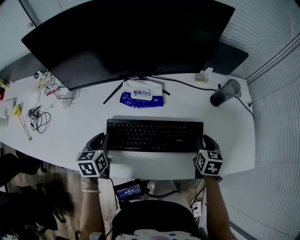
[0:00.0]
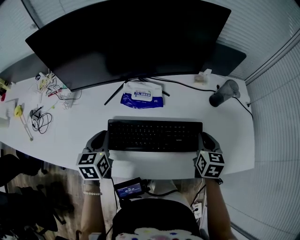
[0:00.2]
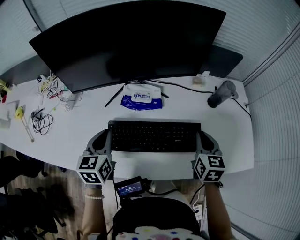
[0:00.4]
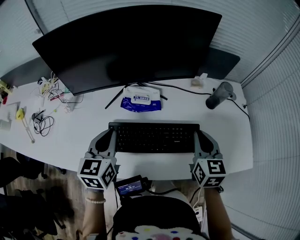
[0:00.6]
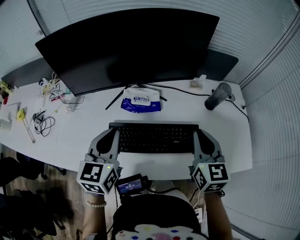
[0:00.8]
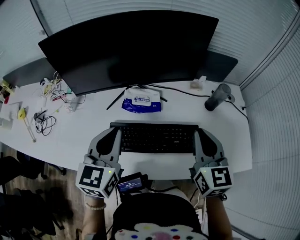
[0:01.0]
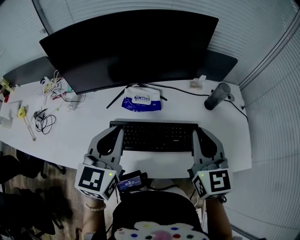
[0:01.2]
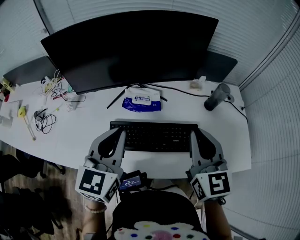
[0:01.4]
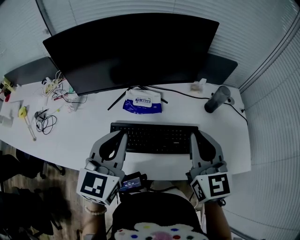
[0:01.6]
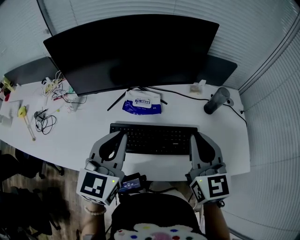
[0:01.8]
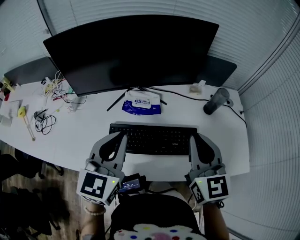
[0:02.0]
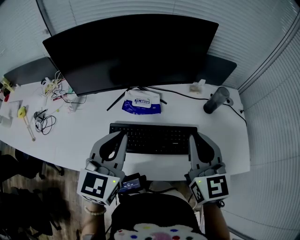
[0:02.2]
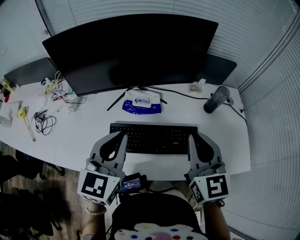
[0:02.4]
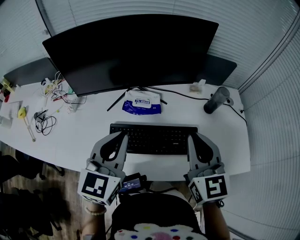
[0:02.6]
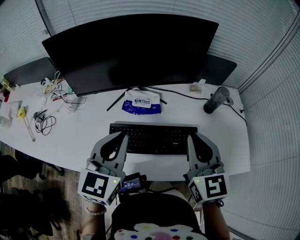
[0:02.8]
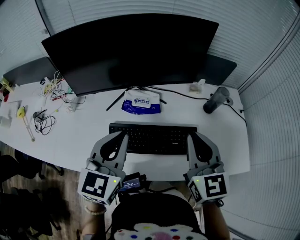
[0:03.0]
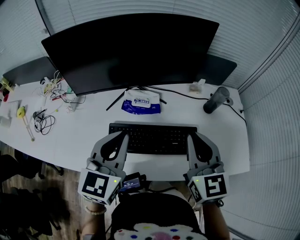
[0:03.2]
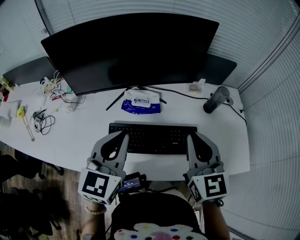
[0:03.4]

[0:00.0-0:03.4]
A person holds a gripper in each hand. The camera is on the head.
0:00.0 to 0:01.6: The right gripper goes some 25 cm upward and to the left, and tips its fingers upward by approximately 30 degrees, while the left gripper heads upward and to the right, covering about 25 cm, and turns by roughly 30 degrees.
0:01.6 to 0:03.4: Neither gripper changes place.

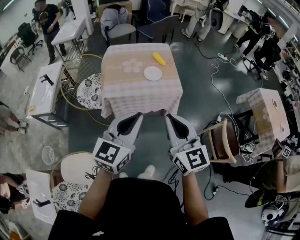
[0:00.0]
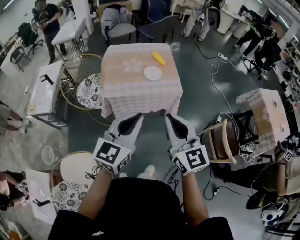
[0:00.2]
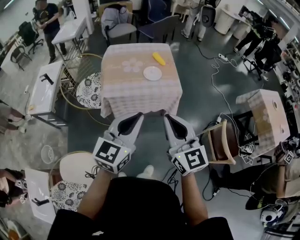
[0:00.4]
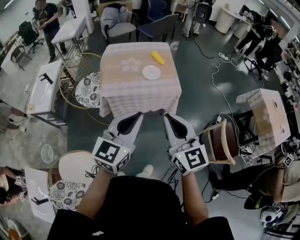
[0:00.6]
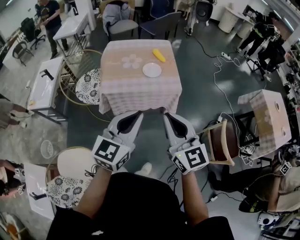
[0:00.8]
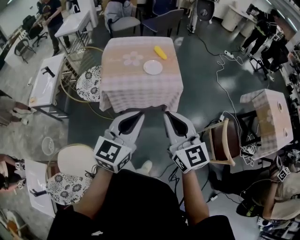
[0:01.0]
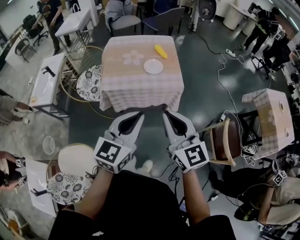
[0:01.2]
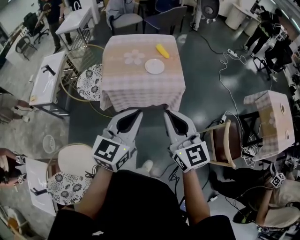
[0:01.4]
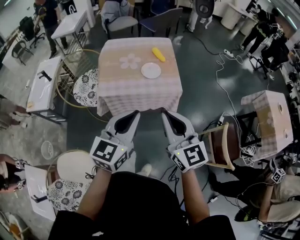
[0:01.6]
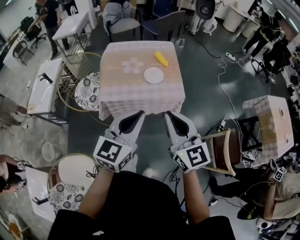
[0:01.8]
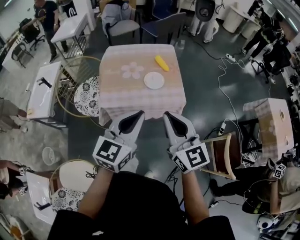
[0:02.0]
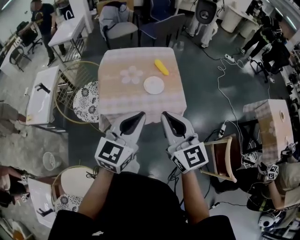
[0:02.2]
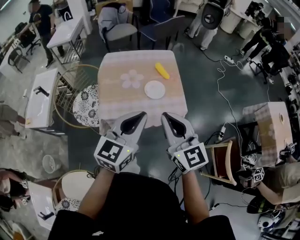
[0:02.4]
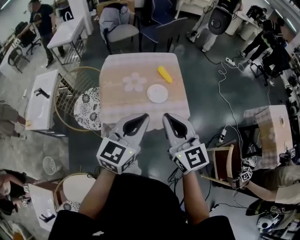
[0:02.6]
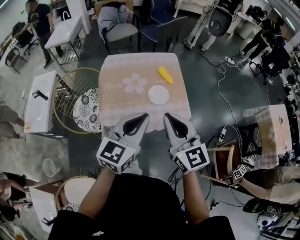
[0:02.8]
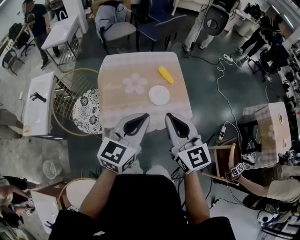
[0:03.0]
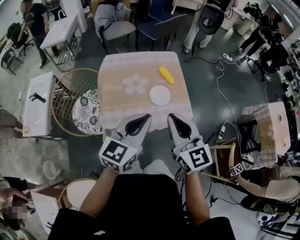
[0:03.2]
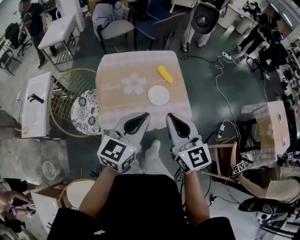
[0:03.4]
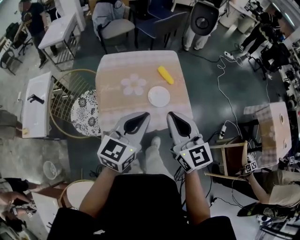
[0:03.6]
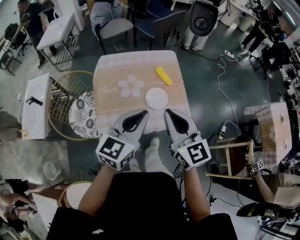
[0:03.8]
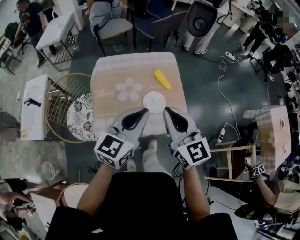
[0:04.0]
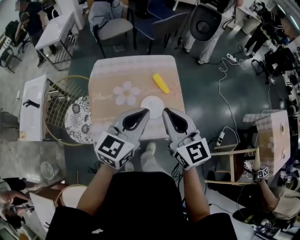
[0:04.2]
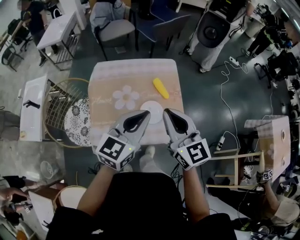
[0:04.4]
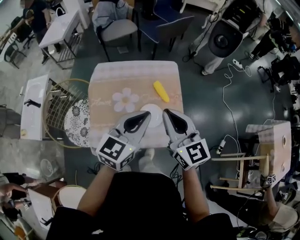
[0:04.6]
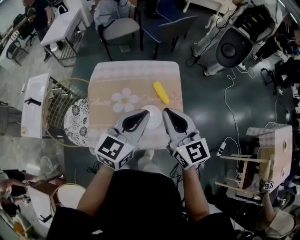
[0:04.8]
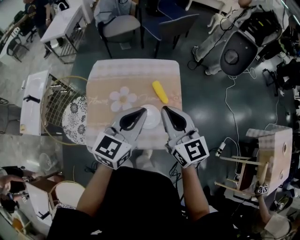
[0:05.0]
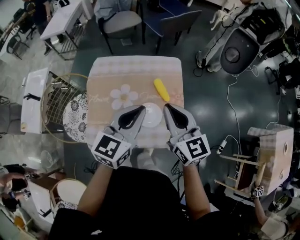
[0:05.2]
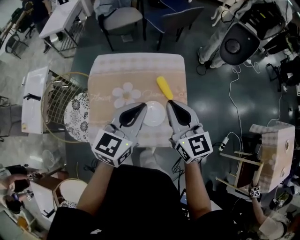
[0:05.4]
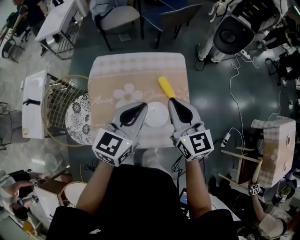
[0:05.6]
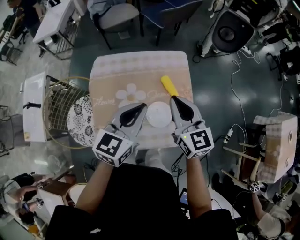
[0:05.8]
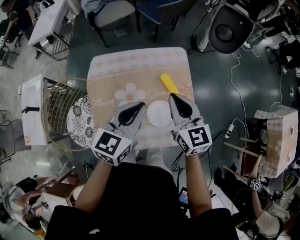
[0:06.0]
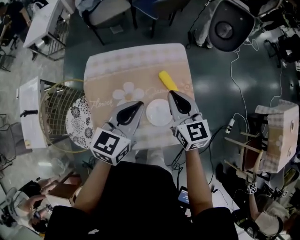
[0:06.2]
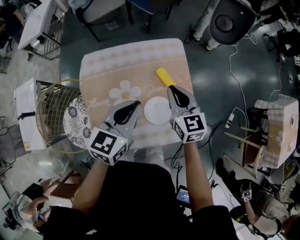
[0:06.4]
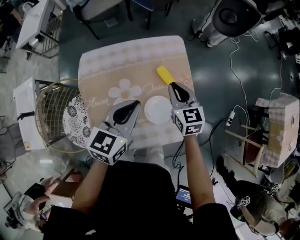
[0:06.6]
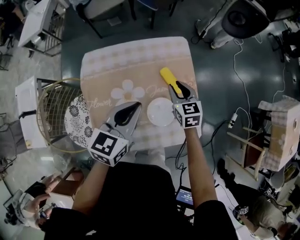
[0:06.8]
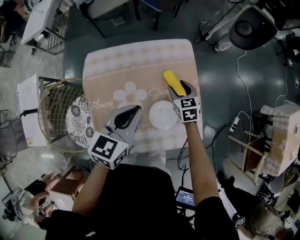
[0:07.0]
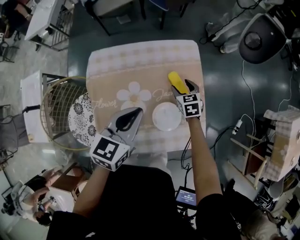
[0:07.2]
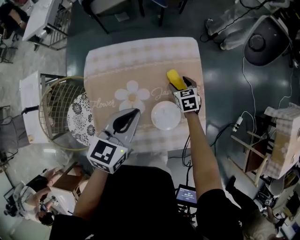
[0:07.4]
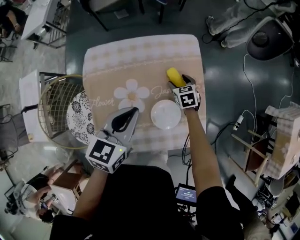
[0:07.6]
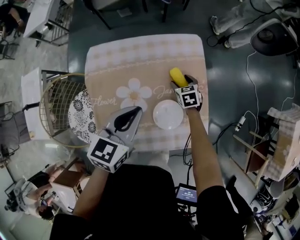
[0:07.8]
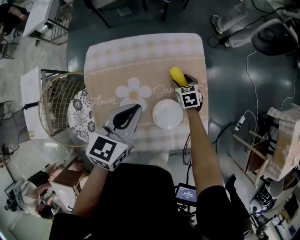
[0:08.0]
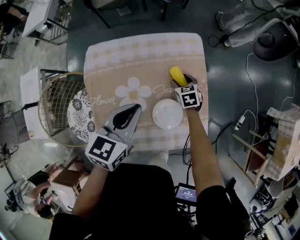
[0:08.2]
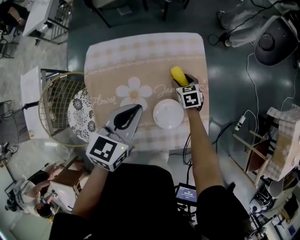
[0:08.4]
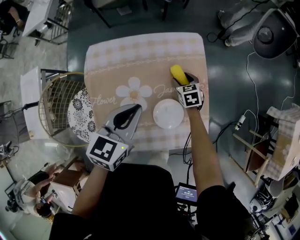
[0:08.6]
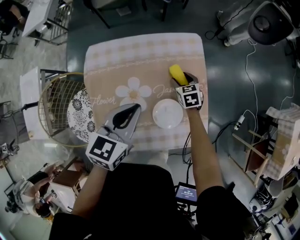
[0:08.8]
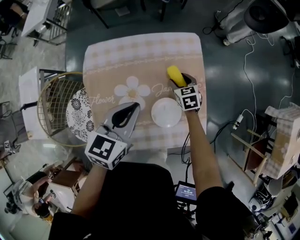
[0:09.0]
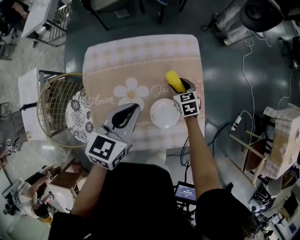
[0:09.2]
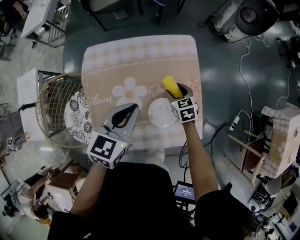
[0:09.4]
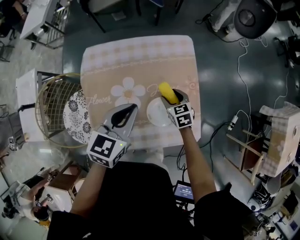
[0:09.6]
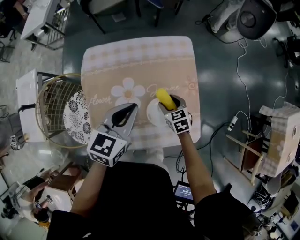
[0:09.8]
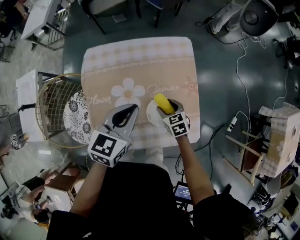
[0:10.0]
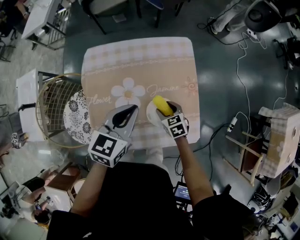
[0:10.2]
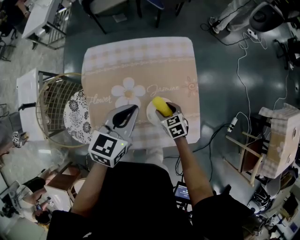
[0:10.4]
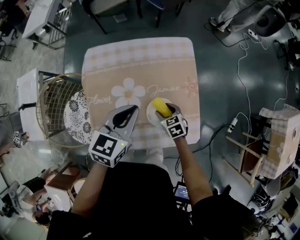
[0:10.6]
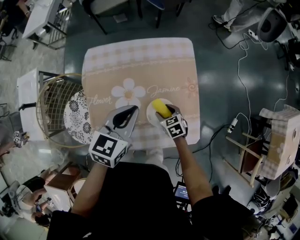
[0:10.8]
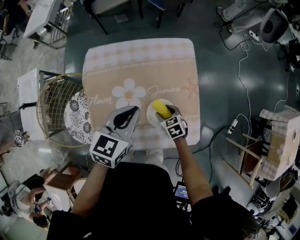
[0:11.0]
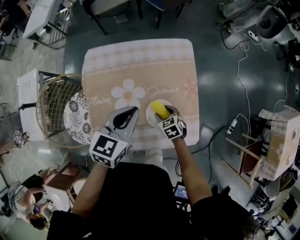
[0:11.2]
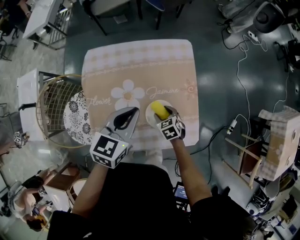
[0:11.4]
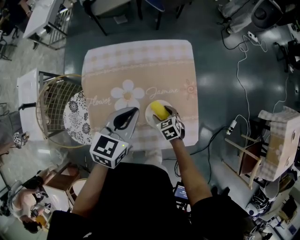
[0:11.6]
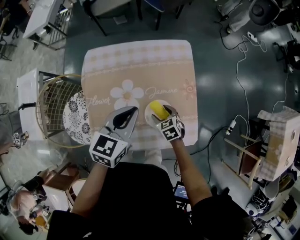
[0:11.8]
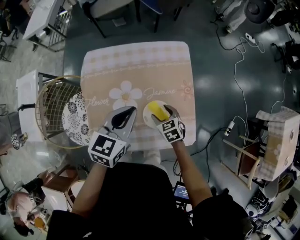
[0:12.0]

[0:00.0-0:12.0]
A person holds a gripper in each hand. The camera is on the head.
0:00.0 to 0:01.6: The two grippers go about 5 cm forward.
0:01.6 to 0:03.0: The right gripper heads forward and to the left, covering some 20 cm. The left gripper is displaced forward by approximately 20 cm.
0:03.0 to 0:04.4: Both grippers travel together forward, about 15 cm.
0:04.4 to 0:06.0: Both grippers travel together forward and downward, about 15 cm.
0:06.0 to 0:07.6: The left gripper goes some 10 cm downward; the right gripper shifts some 35 cm downward, points its fingers roughly 40 degrees further downward, and opens its fingers.
0:07.6 to 0:09.0: The grippers move only a little.
0:09.0 to 0:10.4: The right gripper moves backward, some 15 cm.
0:10.4 to 0:12.0: The grippers stay close to where they were, moving slightly.

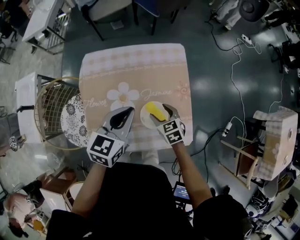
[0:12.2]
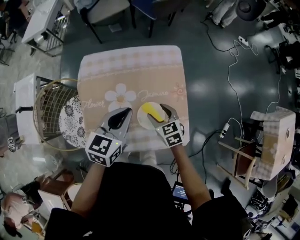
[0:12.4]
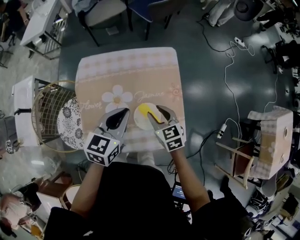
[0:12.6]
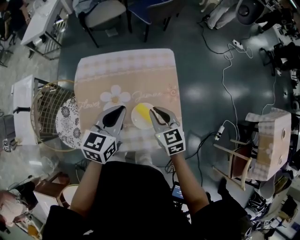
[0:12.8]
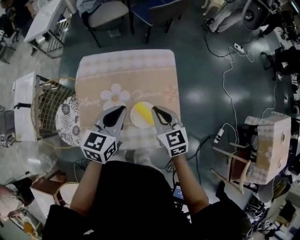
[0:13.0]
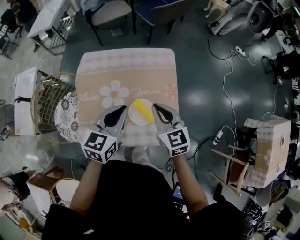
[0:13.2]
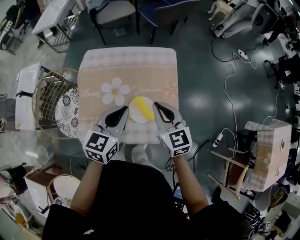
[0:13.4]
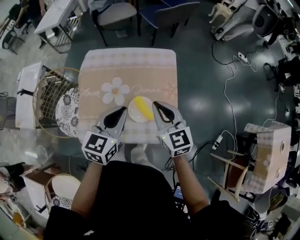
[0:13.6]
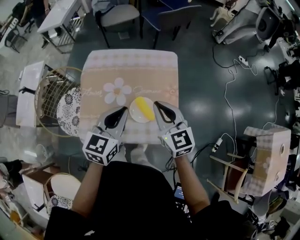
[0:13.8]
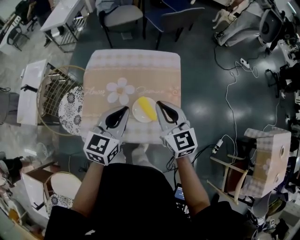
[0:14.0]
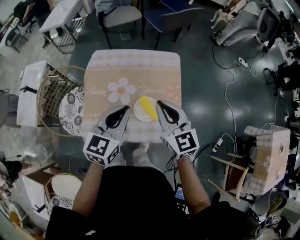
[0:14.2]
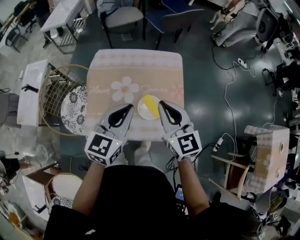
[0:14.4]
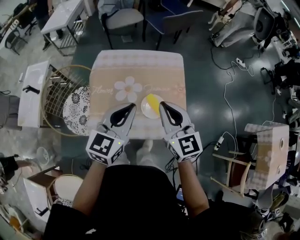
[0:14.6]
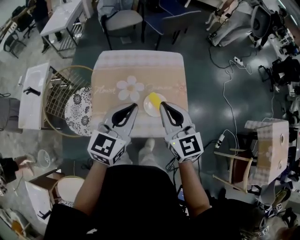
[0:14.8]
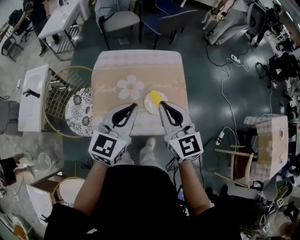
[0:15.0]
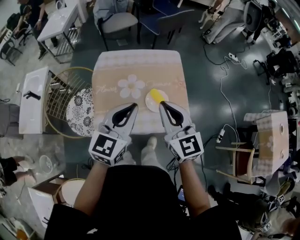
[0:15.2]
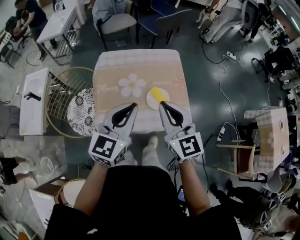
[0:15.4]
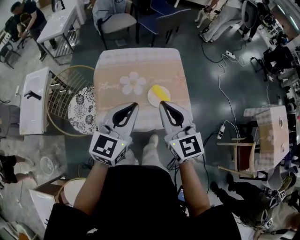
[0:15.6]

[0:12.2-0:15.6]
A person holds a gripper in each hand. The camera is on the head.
0:12.2 to 0:13.8: The left gripper is displaced backward by about 10 cm; the right gripper heads upward, covering about 25 cm, angles its fingers upward, by roughly 30 degrees, and closes its fingers.
0:13.8 to 0:15.6: The grippers both shift backward, to the left and upward by roughly 20 cm.

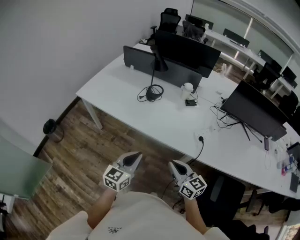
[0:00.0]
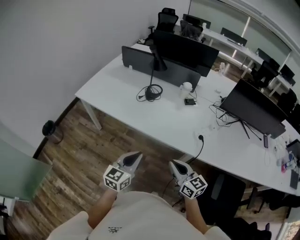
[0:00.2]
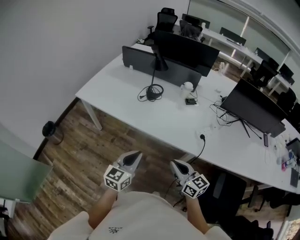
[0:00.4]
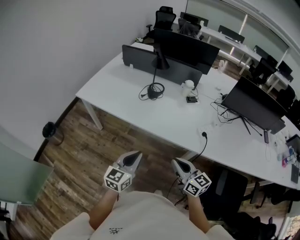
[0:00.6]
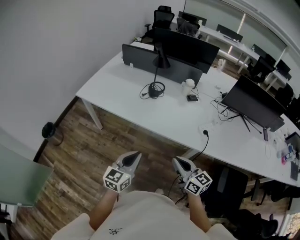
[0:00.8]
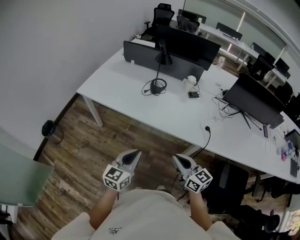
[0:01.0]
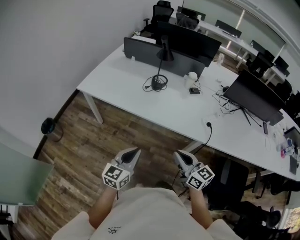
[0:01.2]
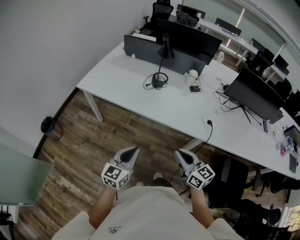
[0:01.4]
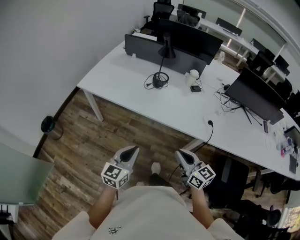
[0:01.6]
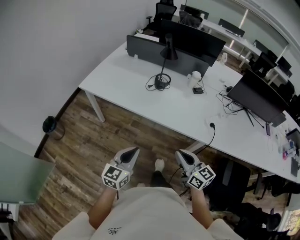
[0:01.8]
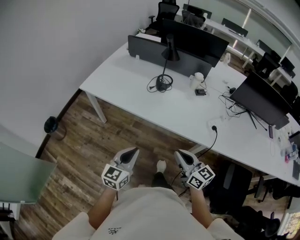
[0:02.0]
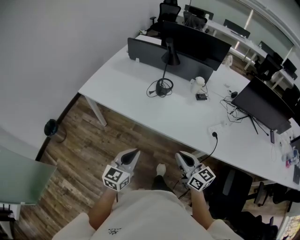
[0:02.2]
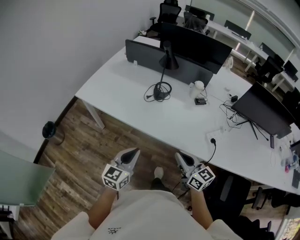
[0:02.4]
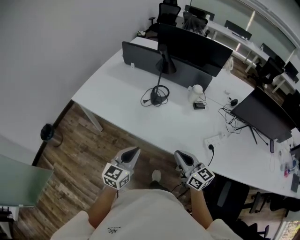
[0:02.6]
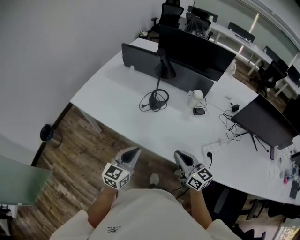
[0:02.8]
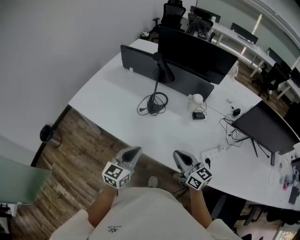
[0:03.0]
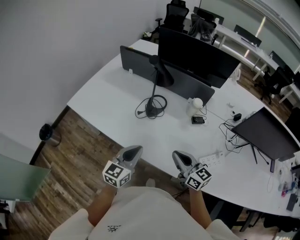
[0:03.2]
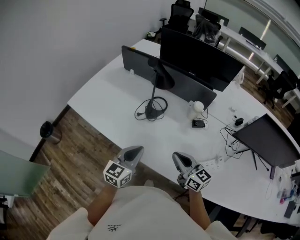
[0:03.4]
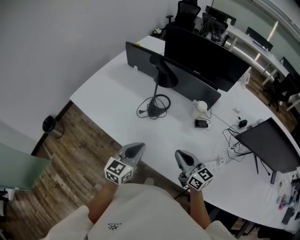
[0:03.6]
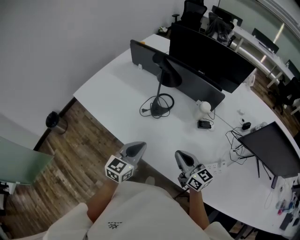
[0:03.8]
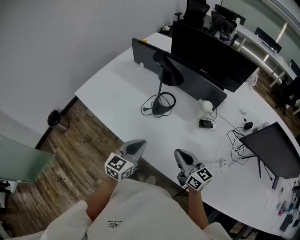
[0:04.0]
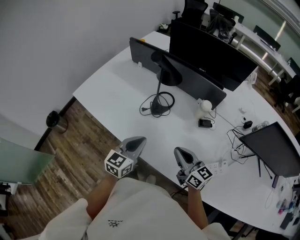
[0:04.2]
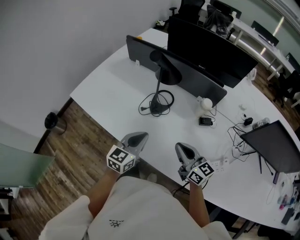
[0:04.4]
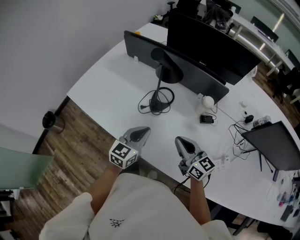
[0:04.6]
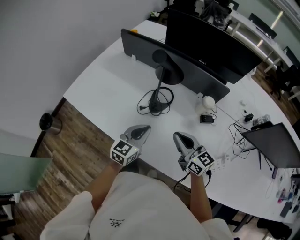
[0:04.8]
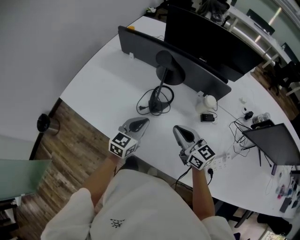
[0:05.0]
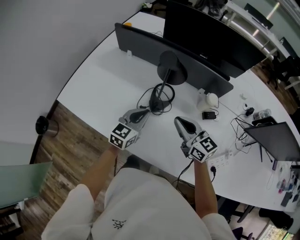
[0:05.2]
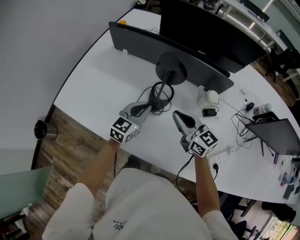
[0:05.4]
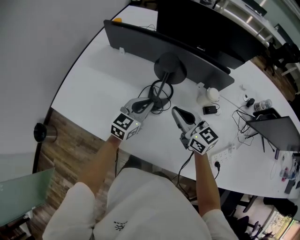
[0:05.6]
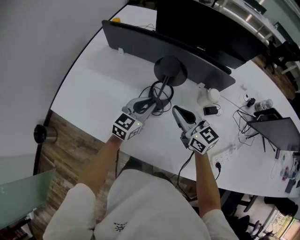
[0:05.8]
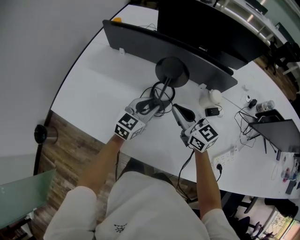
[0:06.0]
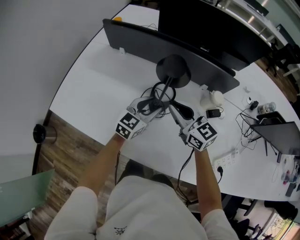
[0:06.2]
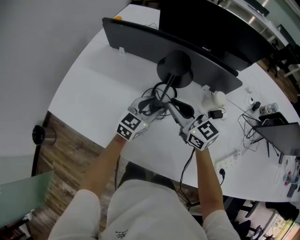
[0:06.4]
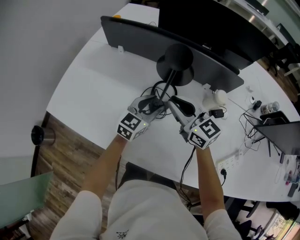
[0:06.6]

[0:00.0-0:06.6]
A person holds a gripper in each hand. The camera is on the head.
0:00.0 to 0:01.6: Both grippers move to the left, some 10 cm.
0:01.6 to 0:03.2: Both grippers move forward and to the right, about 35 cm.
0:03.2 to 0:05.0: The two grippers go about 20 cm forward.
0:05.0 to 0:06.6: The left gripper goes some 15 cm forward and downward, and opens up; the right gripper travels forward and to the left by approximately 15 cm.
